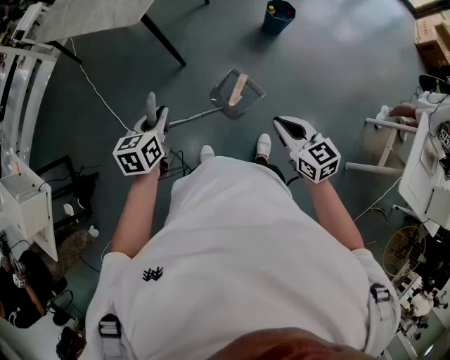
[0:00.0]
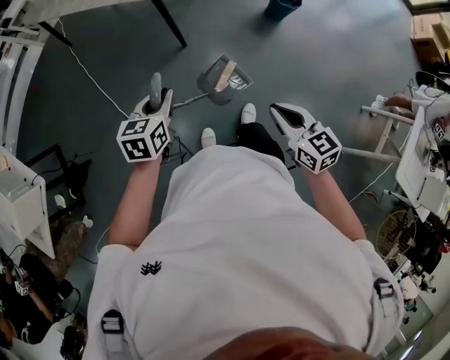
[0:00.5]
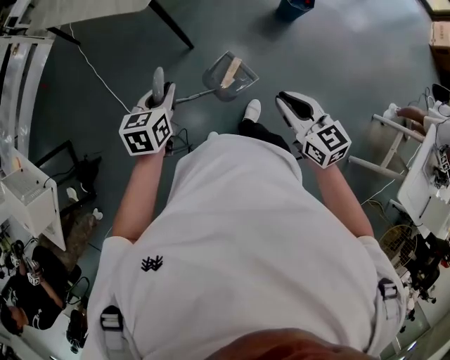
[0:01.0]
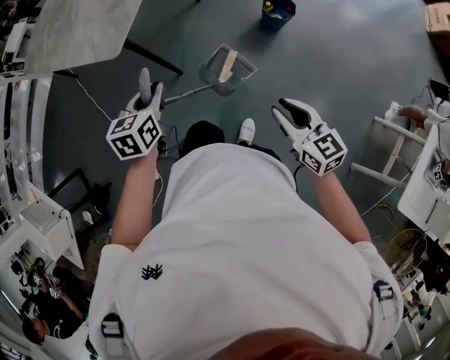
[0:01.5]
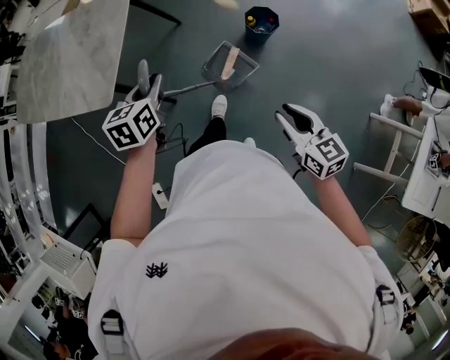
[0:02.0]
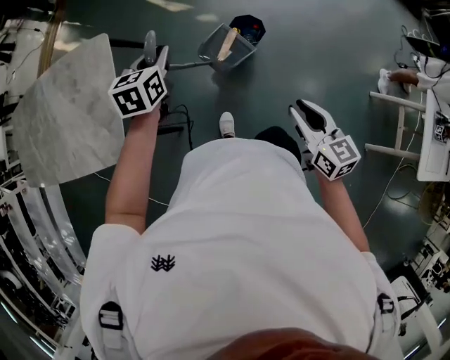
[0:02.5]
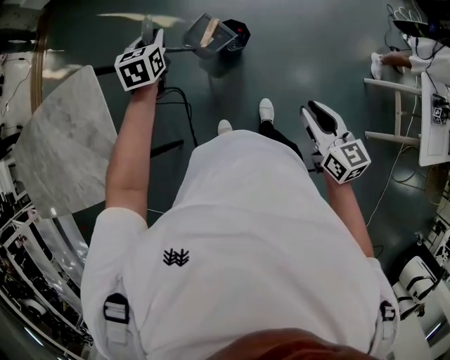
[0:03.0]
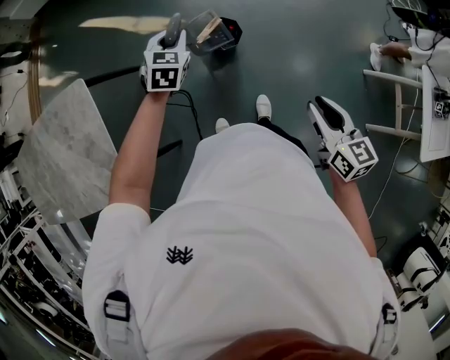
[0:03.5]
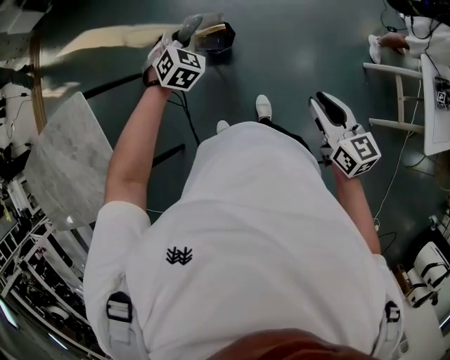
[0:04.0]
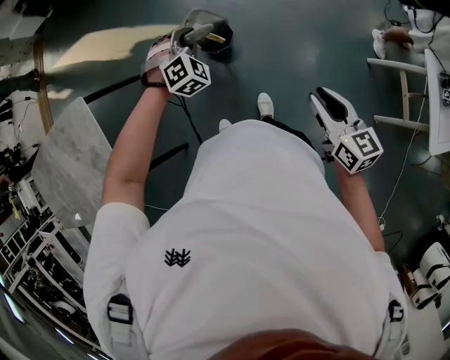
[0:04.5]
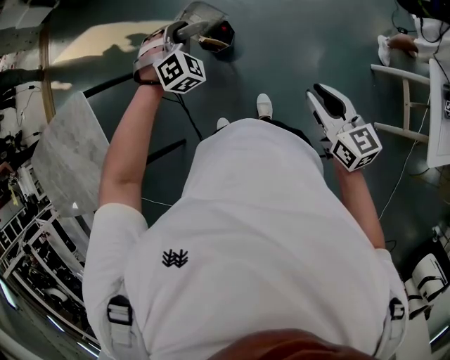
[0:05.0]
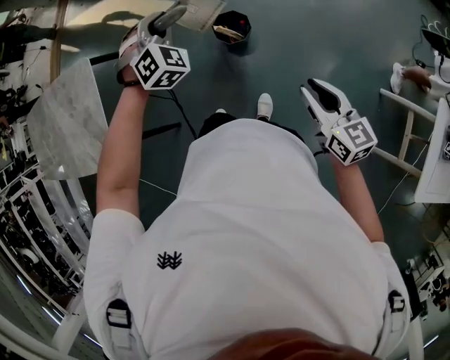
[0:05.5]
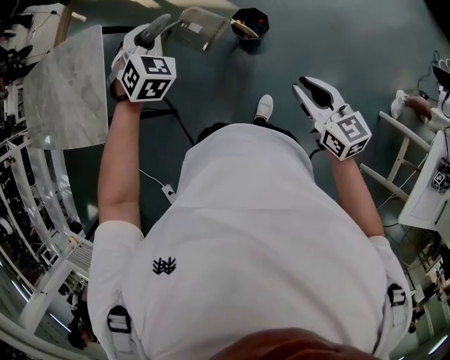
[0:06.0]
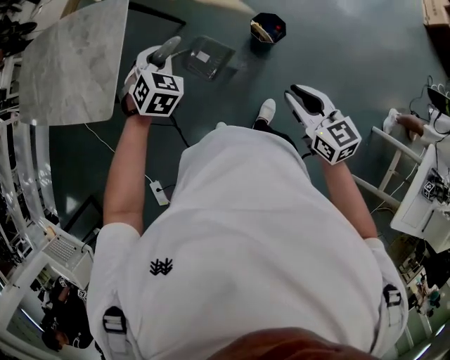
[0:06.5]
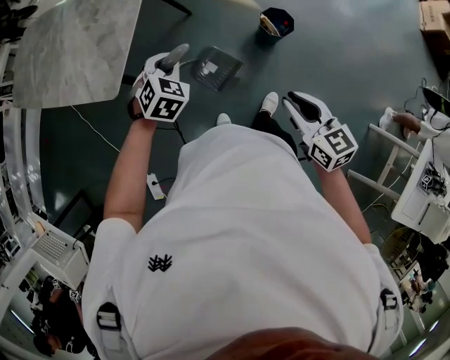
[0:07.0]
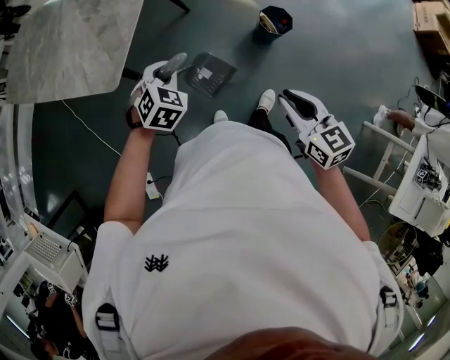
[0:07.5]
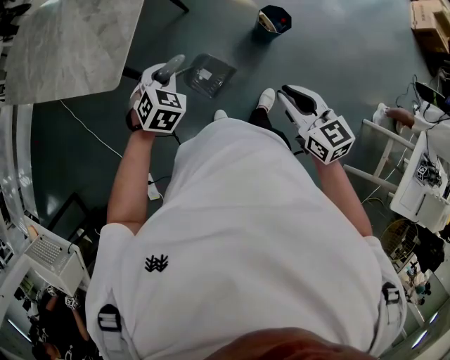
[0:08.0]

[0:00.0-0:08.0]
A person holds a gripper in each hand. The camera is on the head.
0:00.0 to 0:02.0: Both grippers travel together forward and to the right, about 40 cm.
0:02.0 to 0:04.0: The left gripper changes place by some 50 cm, and rolls clockwise, seen from behind, by approximately 70 degrees. The right gripper shifts by some 25 cm, and turns by approximately 40 degrees.
0:04.0 to 0:06.0: The right gripper shifts by about 10 cm, and turns by about 30 degrees. The left gripper moves some 20 cm, and rotates roughly 30 degrees.
0:06.0 to 0:08.0: The right gripper travels to the left by approximately 35 cm. The left gripper travels to the left and backward by about 40 cm, and turns by some 20 degrees.

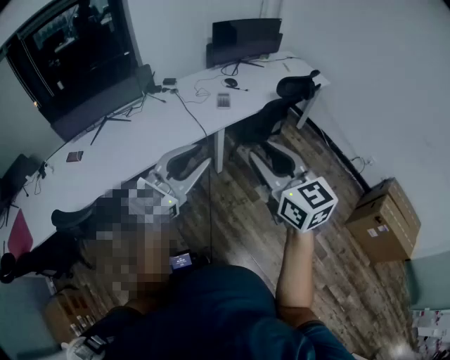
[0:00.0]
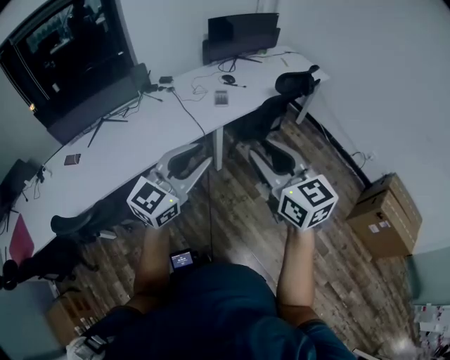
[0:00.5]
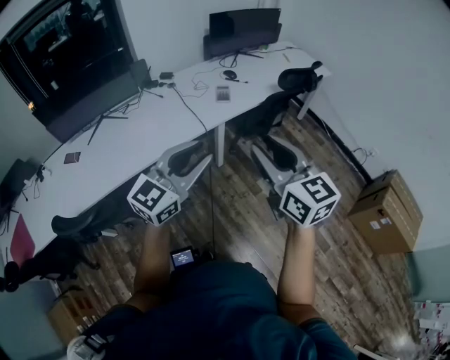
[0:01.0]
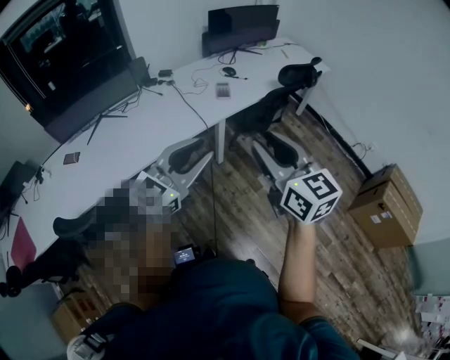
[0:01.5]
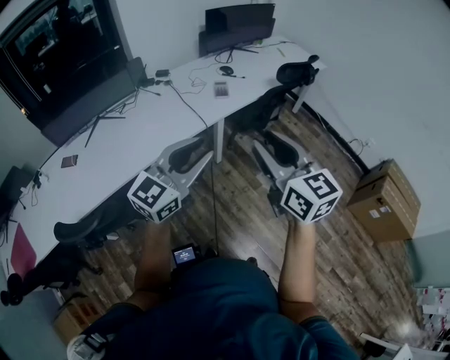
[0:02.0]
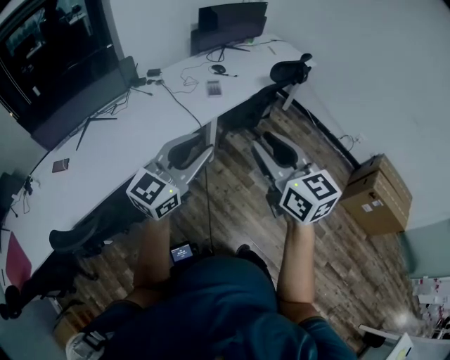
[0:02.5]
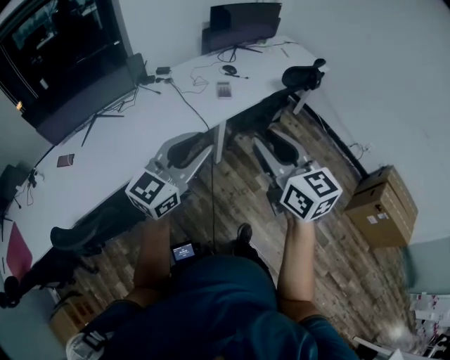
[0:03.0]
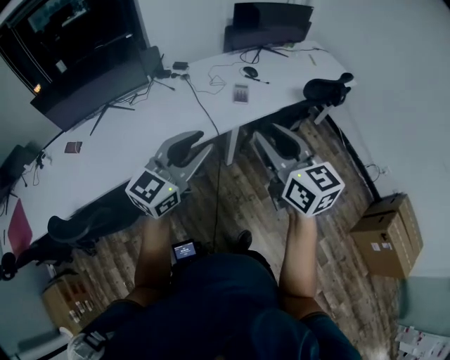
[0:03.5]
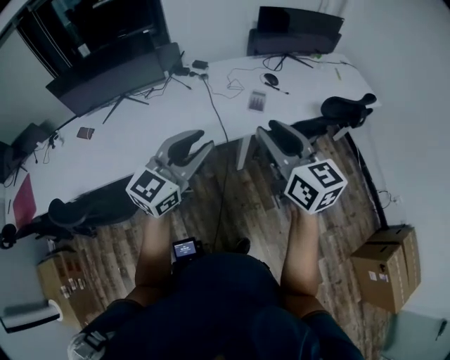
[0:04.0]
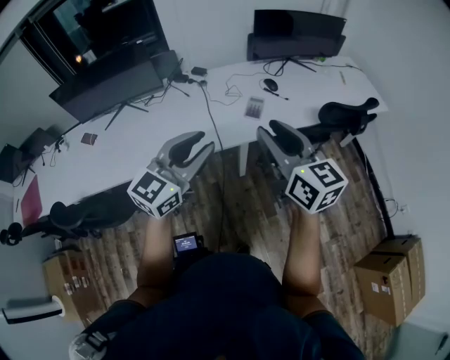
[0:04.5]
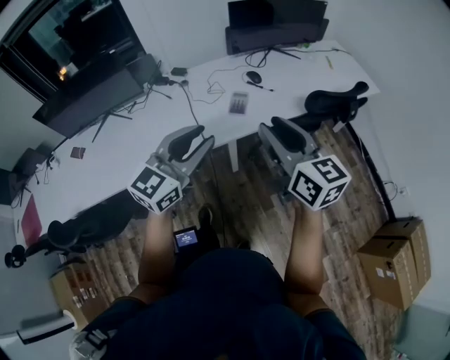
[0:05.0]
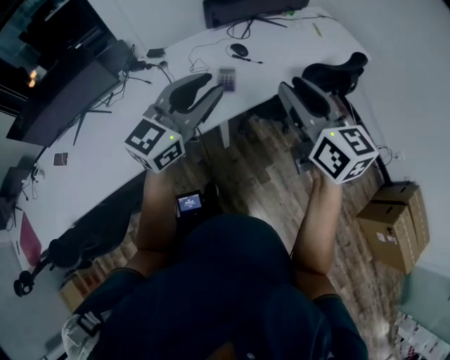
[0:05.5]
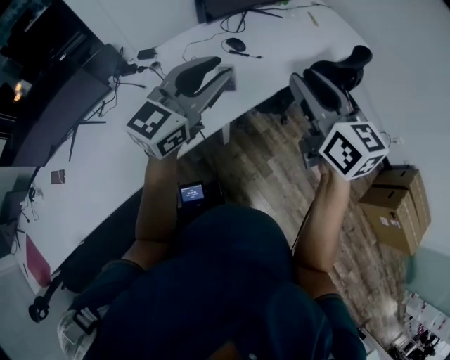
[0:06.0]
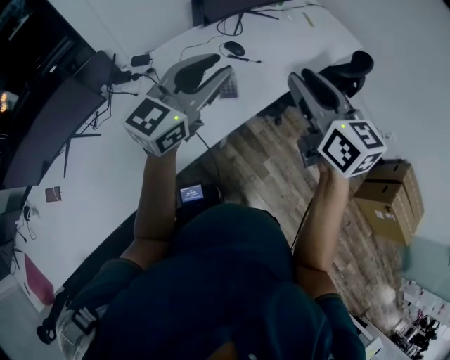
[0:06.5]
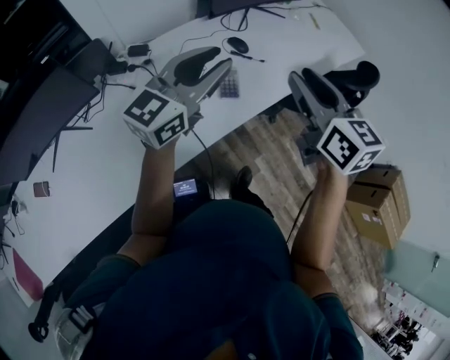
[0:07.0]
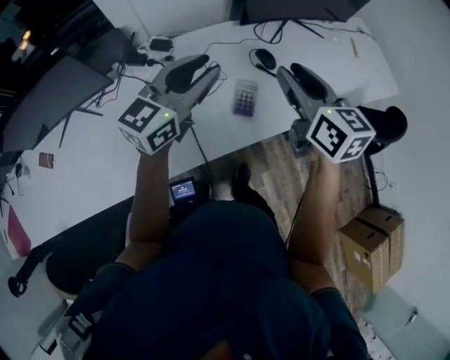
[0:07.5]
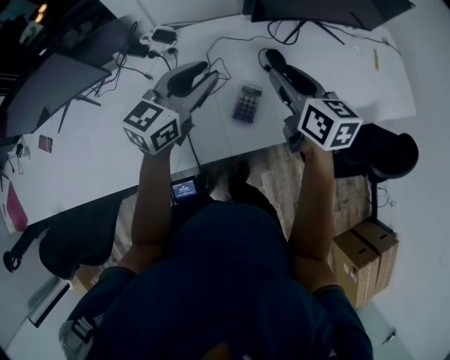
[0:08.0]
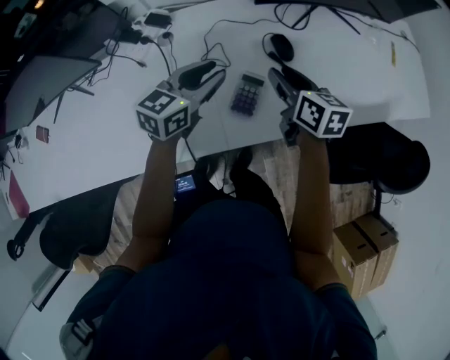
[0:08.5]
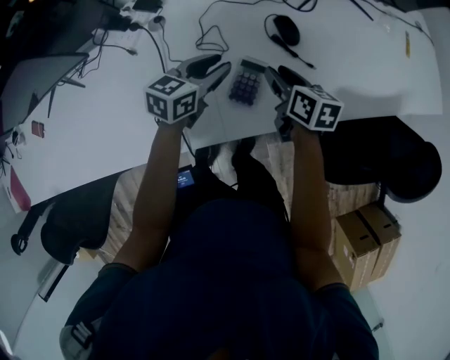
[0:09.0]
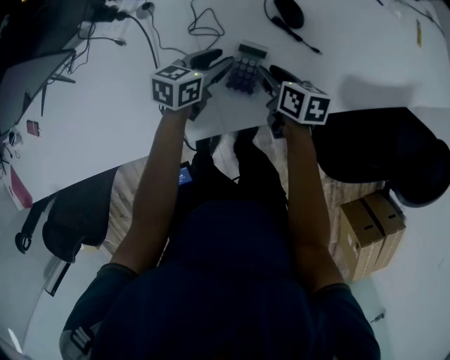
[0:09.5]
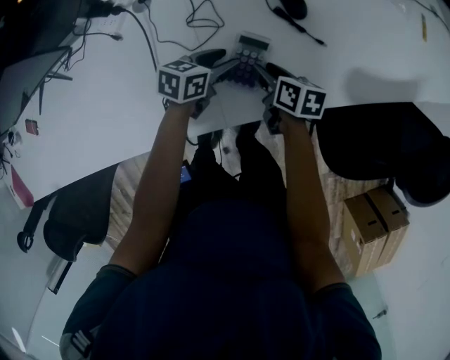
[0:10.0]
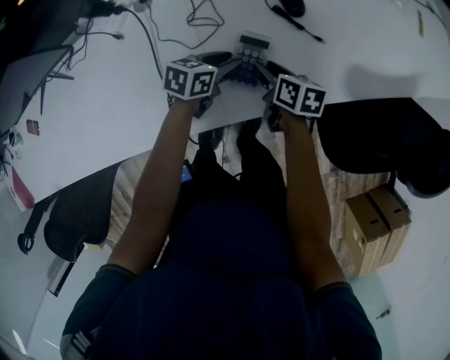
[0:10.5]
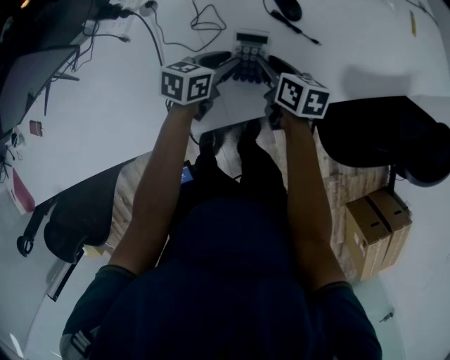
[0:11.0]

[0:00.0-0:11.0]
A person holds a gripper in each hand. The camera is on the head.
0:00.0 to 0:02.0: The left gripper moves some 5 cm.
0:02.0 to 0:03.5: Both grippers move forward, roughly 15 cm.
0:03.5 to 0:05.5: Both grippers travel together forward and to the right, about 25 cm.
0:05.5 to 0:07.5: Both grippers travel together forward and to the left, some 30 cm.
0:07.5 to 0:09.0: The grippers both shift downward by some 30 cm. The right gripper swivels approximately 30 degrees. Meanwhile the left gripper rotates roughly 30 degrees.
0:09.0 to 0:11.0: The left gripper goes roughly 10 cm downward, while the right gripper is displaced downward by roughly 5 cm.

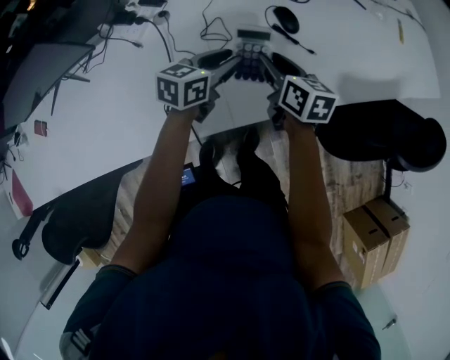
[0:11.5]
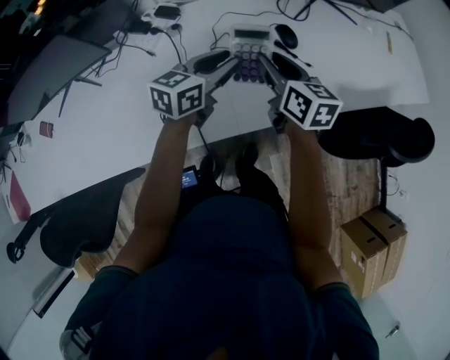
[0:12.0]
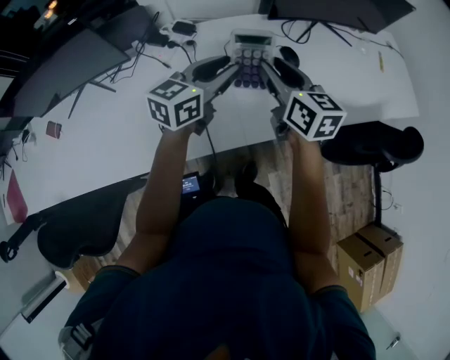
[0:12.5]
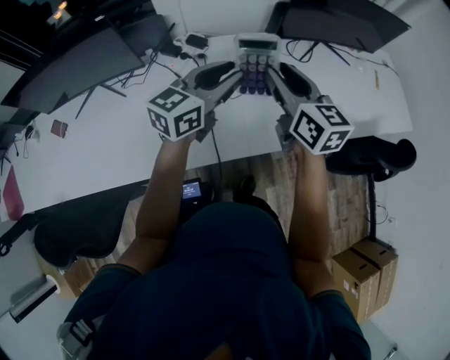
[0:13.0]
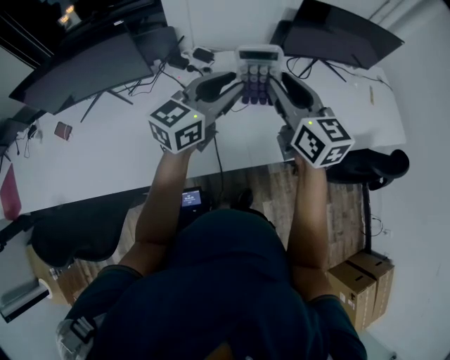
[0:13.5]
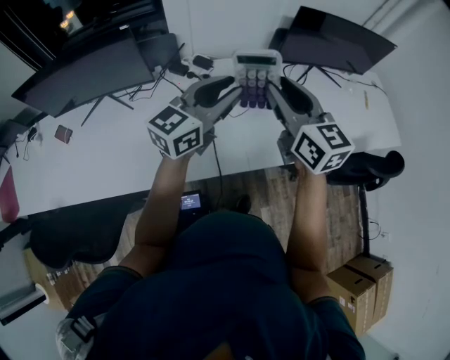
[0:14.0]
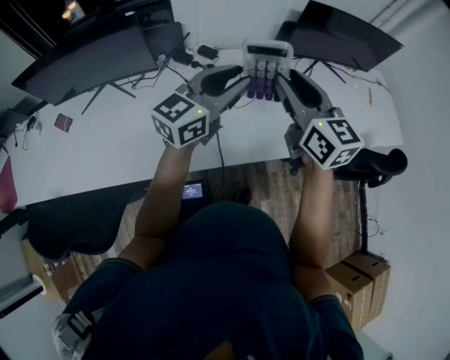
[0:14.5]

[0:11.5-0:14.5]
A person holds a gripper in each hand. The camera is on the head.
0:11.5 to 0:13.0: The left gripper travels upward and to the left by about 25 cm, and swivels roughly 30 degrees. Meanwhile the right gripper travels upward by some 25 cm, and rotates some 30 degrees.
0:13.0 to 0:14.5: The two grippers go roughly 5 cm upward.

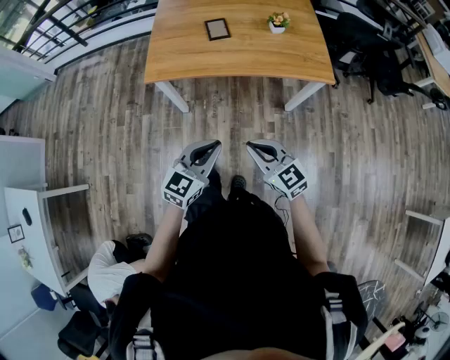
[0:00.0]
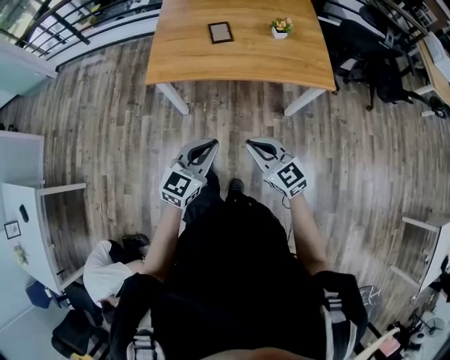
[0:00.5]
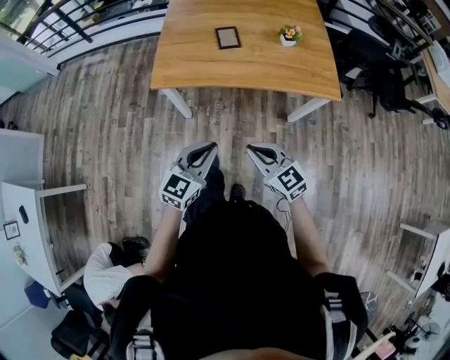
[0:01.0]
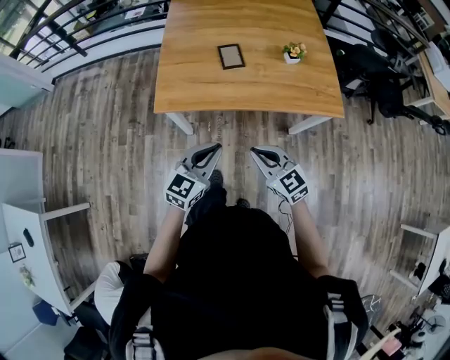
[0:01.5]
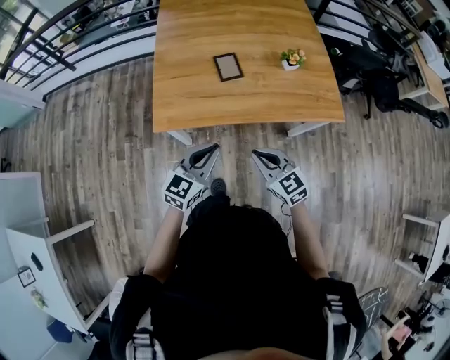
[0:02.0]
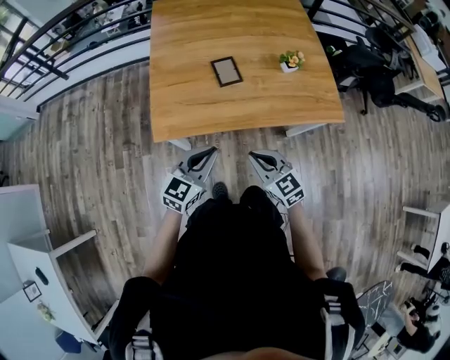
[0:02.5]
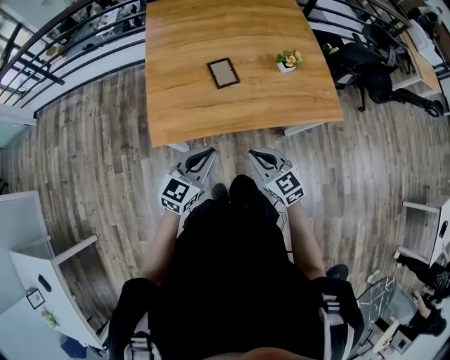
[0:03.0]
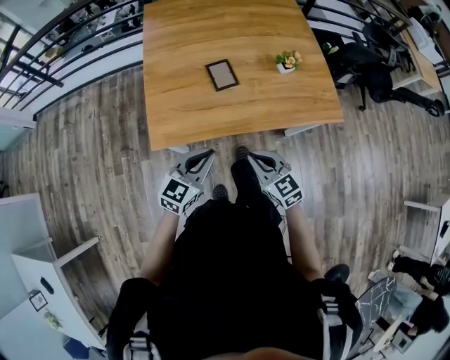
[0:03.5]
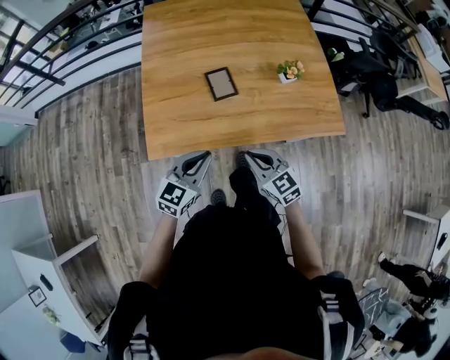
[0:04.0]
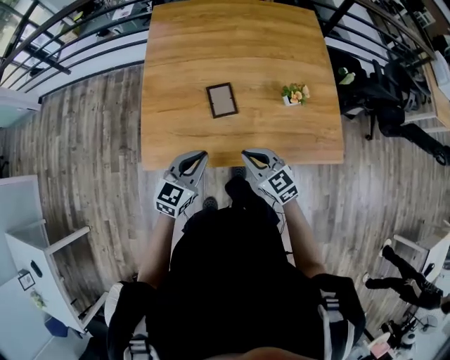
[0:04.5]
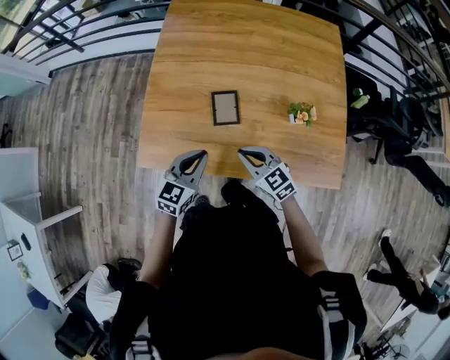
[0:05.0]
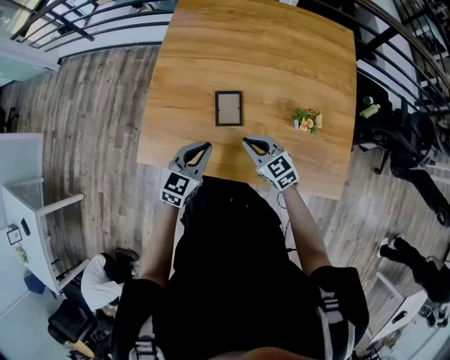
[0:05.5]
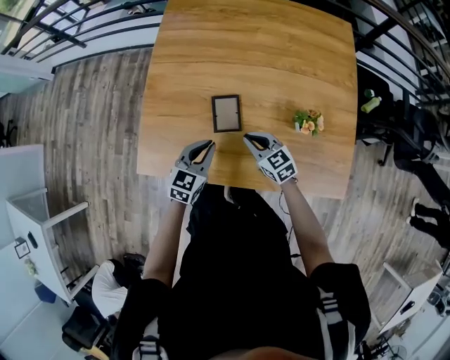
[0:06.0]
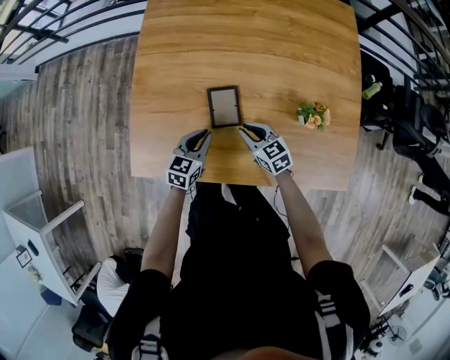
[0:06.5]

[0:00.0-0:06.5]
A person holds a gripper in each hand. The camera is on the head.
0:00.0 to 0:02.0: Both grippers travel together forward, roughly 20 cm.
0:02.0 to 0:04.5: Both grippers travel together forward, approximately 20 cm.
0:04.5 to 0:06.5: The right gripper goes roughly 25 cm forward and downward. The left gripper is displaced downward and forward by some 25 cm.
